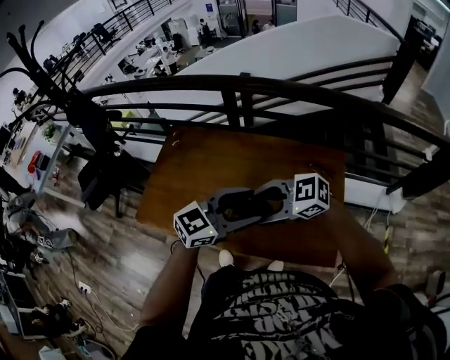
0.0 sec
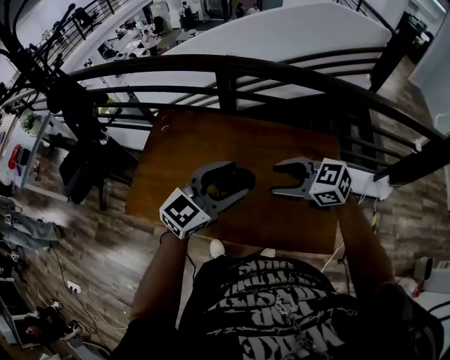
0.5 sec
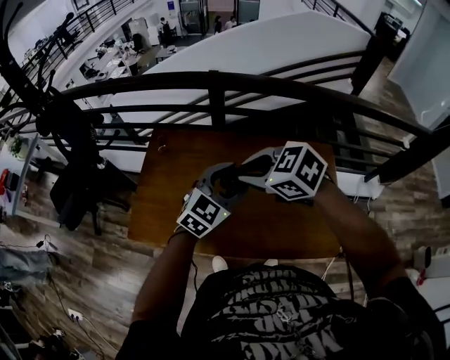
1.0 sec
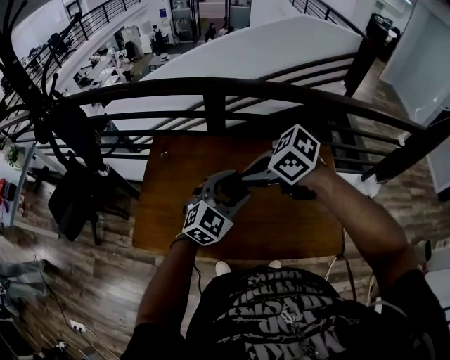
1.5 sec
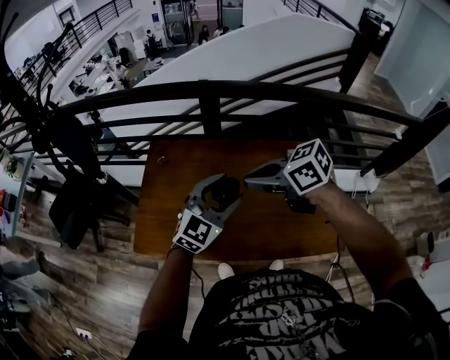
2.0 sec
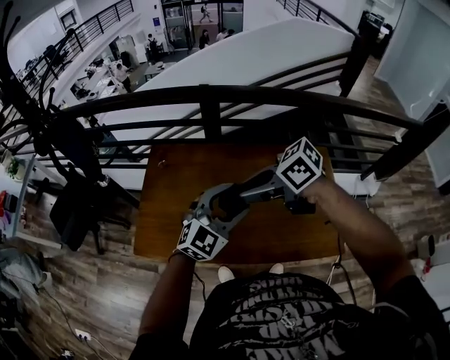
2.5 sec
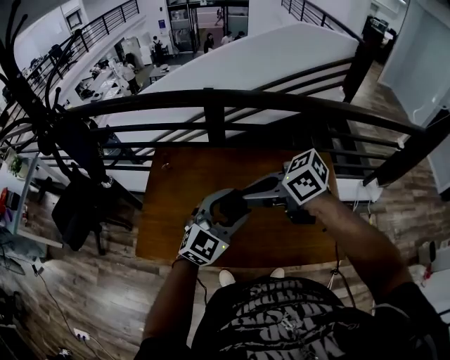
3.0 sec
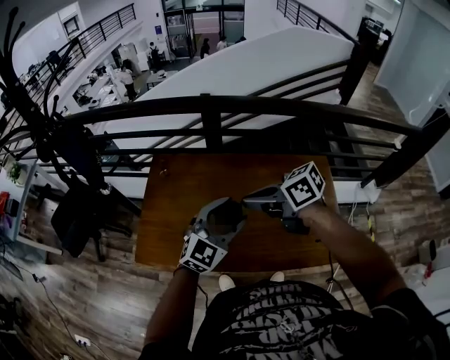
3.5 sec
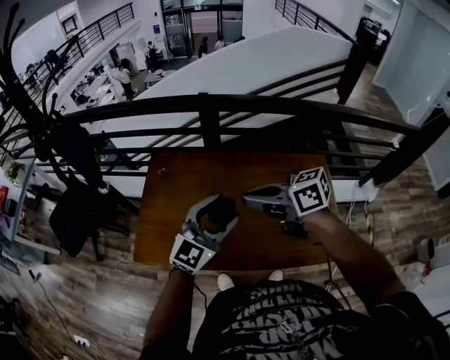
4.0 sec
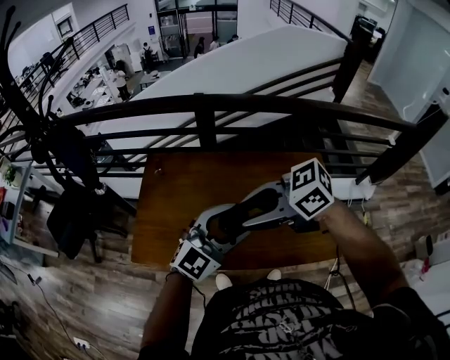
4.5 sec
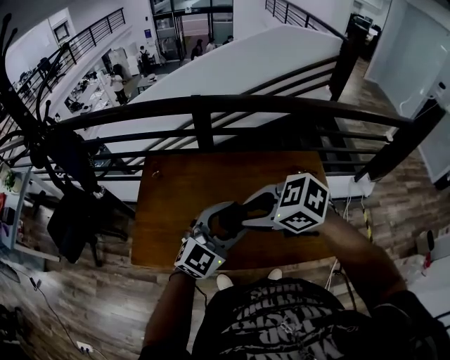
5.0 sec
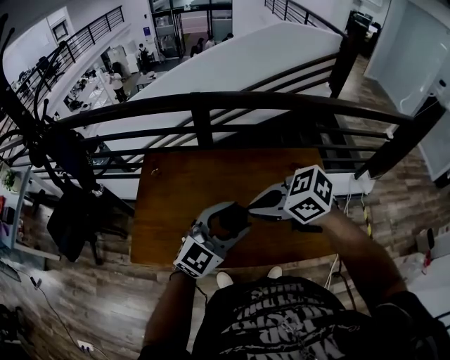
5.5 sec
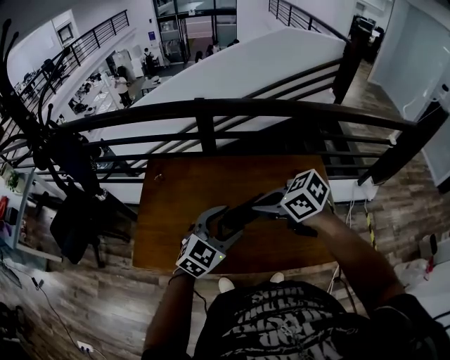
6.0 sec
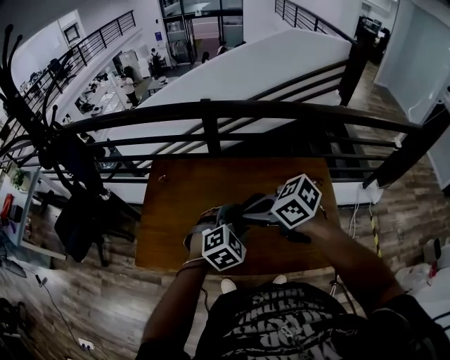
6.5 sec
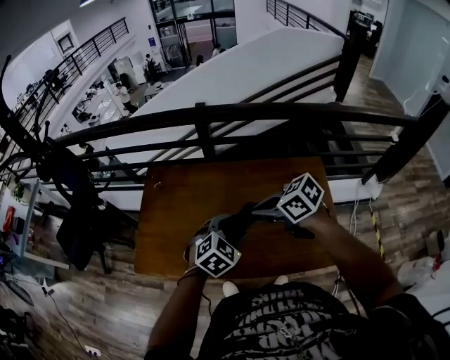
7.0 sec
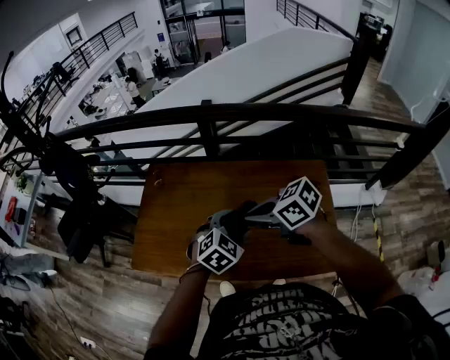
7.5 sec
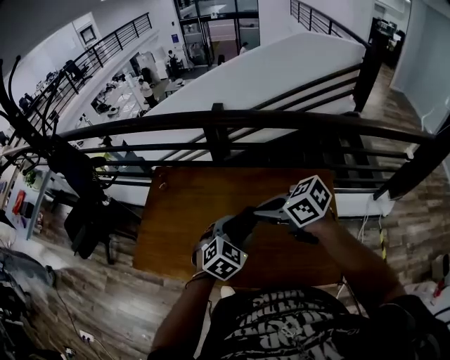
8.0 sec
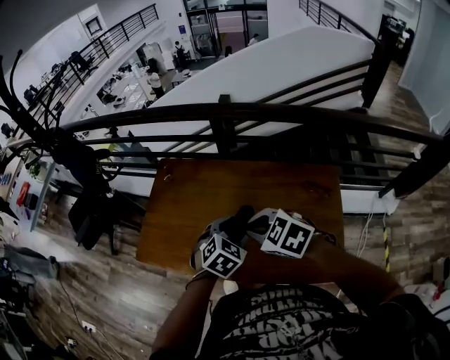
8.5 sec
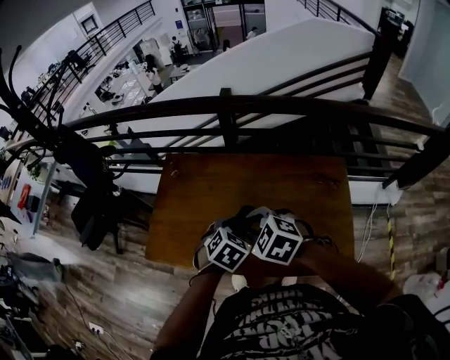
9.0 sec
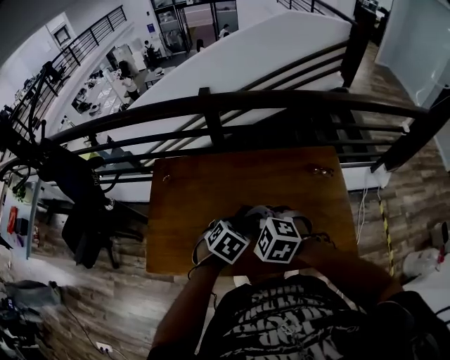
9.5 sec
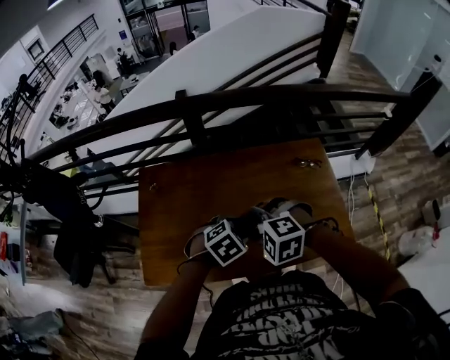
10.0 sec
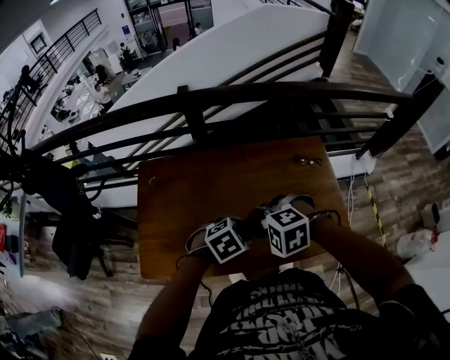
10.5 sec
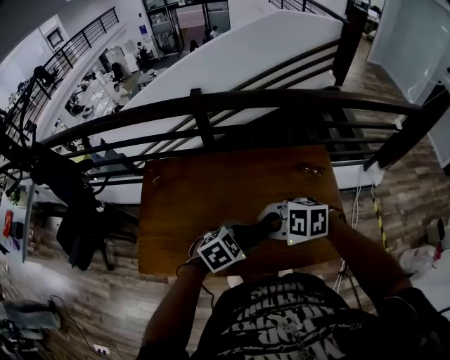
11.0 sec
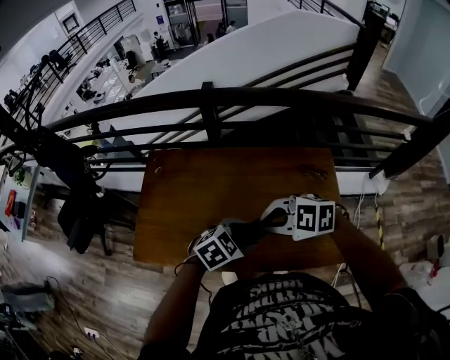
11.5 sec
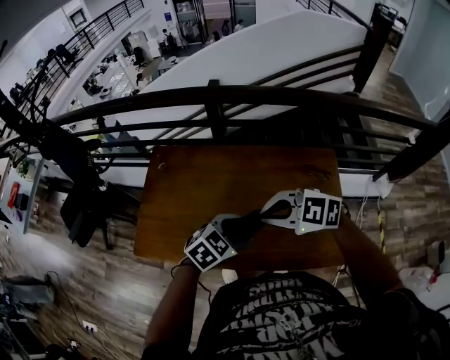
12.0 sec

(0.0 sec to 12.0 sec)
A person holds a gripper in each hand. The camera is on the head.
0.0 sec - 2.0 sec: The left gripper shifts by approximately 20 cm, and rotates some 20 degrees. Meanwhile the right gripper changes place by roughly 15 cm, rotates about 40 degrees, and closes its fingers.
2.0 sec - 4.0 sec: The right gripper opens, then closes again.
4.0 sec - 6.0 sec: The right gripper ends up some 5 cm from where it was, swivels some 20 degrees, and opens, then closes once more. Meanwhile the left gripper goes roughly 5 cm downward, and swivels some 20 degrees.
6.0 sec - 8.0 sec: The grippers both shift to the right by some 10 cm. The left gripper rotates roughly 20 degrees.
8.0 sec - 10.0 sec: The left gripper ends up approximately 10 cm from where it was, and swivels about 30 degrees. The right gripper changes place by about 15 cm, twists about 50 degrees counterclockwise, seen from behind, and opens.
10.0 sec - 12.0 sec: The left gripper shifts by about 10 cm, and changes its angle by about 20 degrees. The right gripper ends up roughly 10 cm from where it was, changes its angle by some 30 degrees, and closes up.

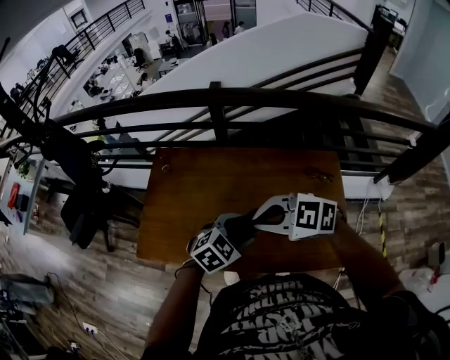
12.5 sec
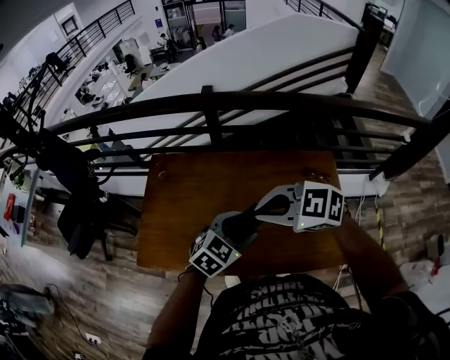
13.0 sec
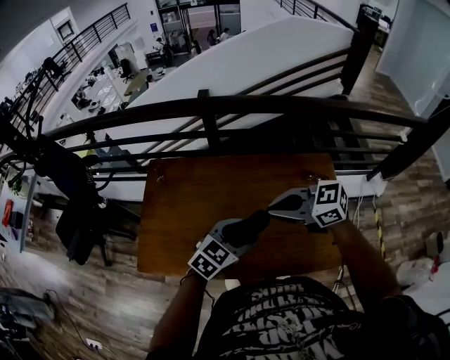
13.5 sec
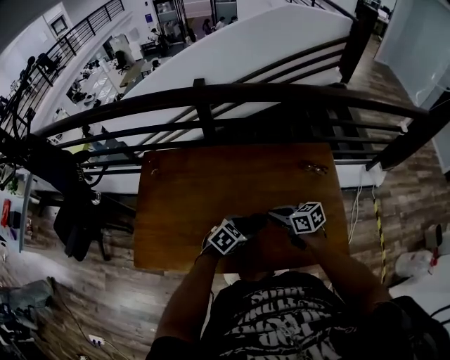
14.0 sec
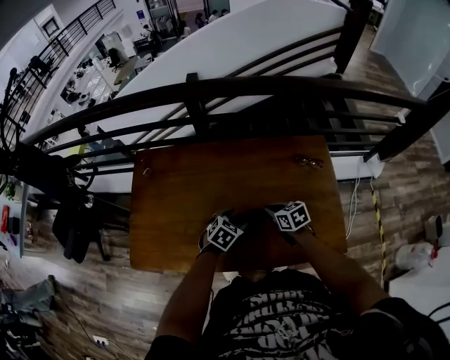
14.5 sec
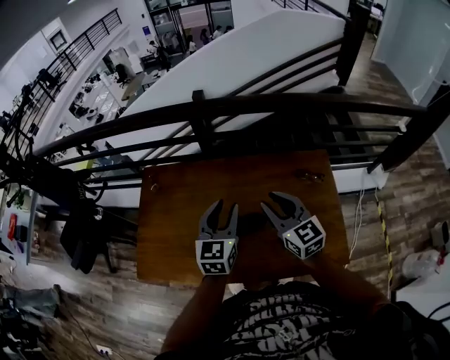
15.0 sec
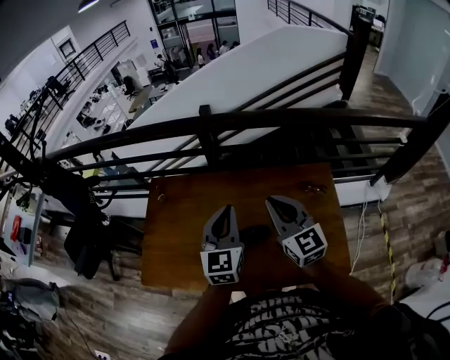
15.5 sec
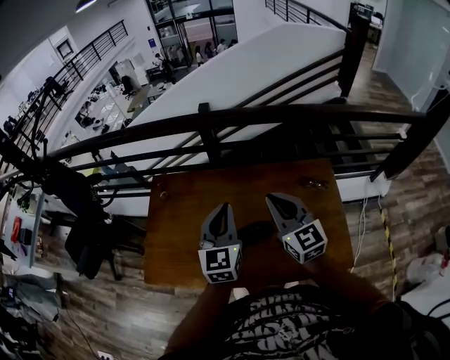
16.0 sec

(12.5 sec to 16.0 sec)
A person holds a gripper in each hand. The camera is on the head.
12.5 sec - 14.5 sec: The grippers both shift downward by approximately 25 cm. The right gripper rotates around the line of its fingers by approximately 60 degrees, clockwise from behind.
14.5 sec - 16.0 sec: The grippers both shift upward by some 30 cm. The right gripper tilts its fingers approximately 40 degrees upward, and opens, then closes again, while the left gripper tips its fingers upward by some 50 degrees, and closes.

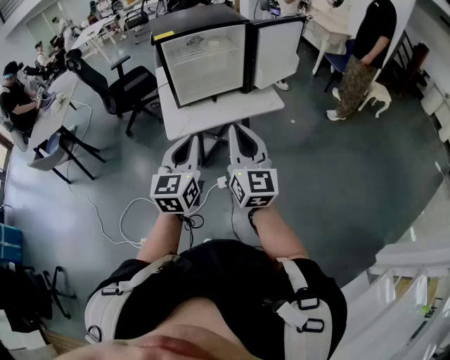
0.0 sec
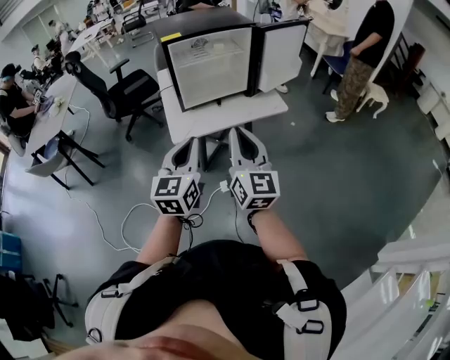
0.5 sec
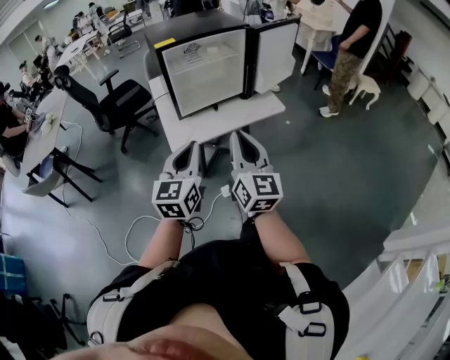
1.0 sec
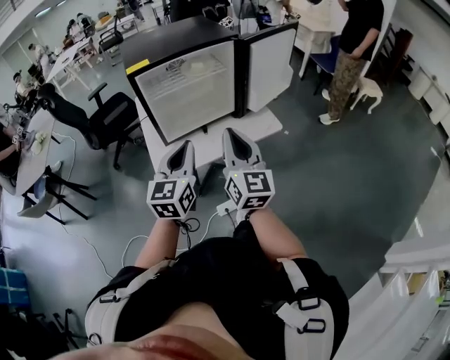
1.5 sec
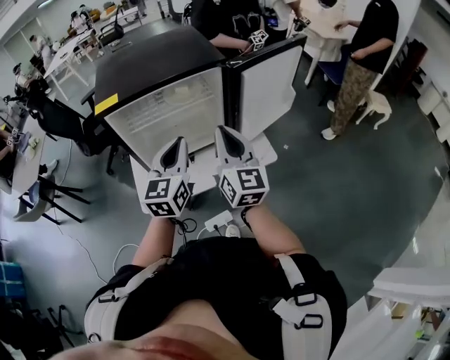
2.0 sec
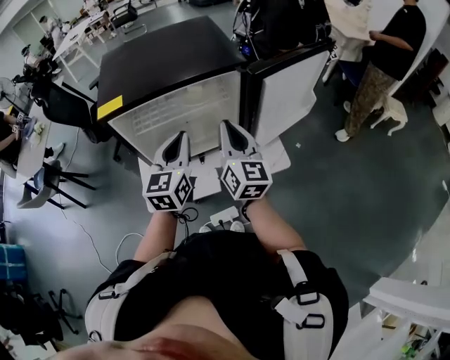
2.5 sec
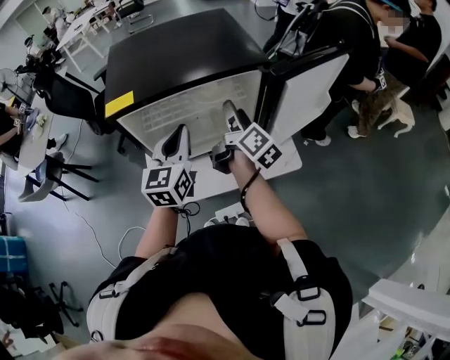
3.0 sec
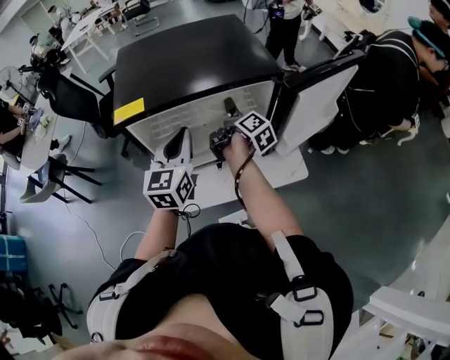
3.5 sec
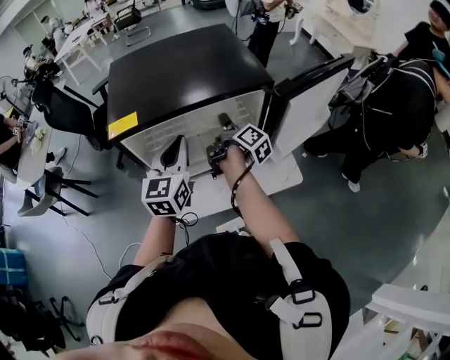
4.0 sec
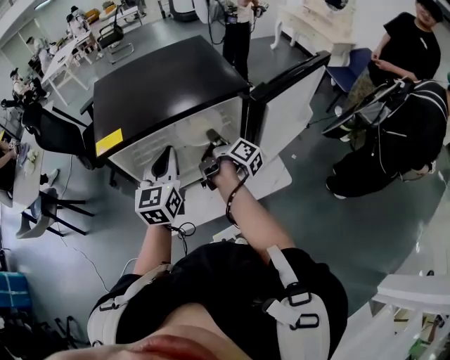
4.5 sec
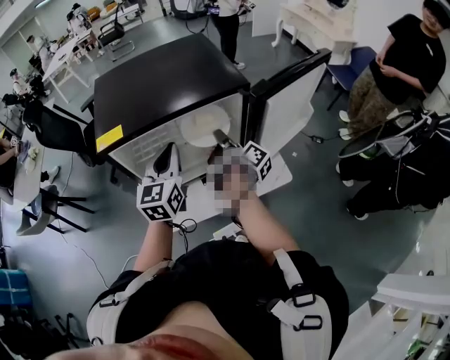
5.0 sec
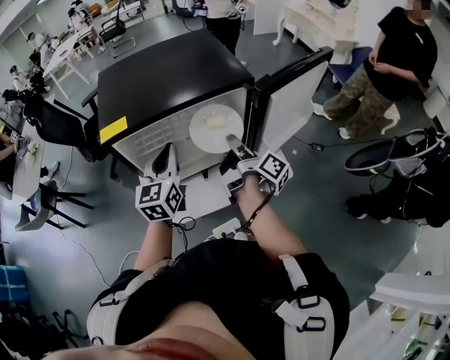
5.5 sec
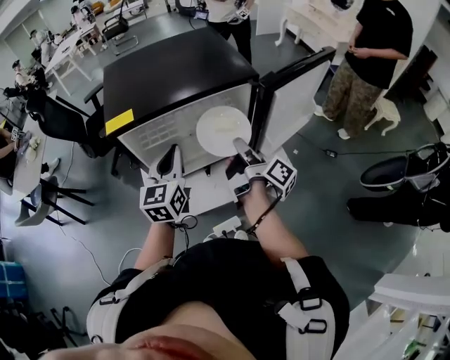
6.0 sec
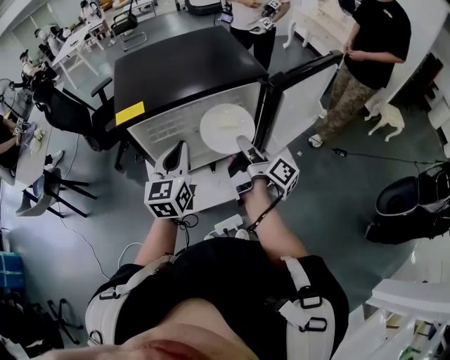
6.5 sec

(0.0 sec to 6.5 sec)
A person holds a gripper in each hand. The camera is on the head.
0.0 sec - 2.0 sec: The two grippers go some 35 cm forward.
2.0 sec - 4.5 sec: The left gripper travels forward and to the left by some 15 cm; the right gripper travels forward and downward by about 25 cm, rolls clockwise, seen from behind, by approximately 80 degrees, and opens, then closes once more.
4.5 sec - 6.5 sec: The right gripper travels backward and upward by approximately 15 cm; the left gripper shifts by approximately 5 cm.

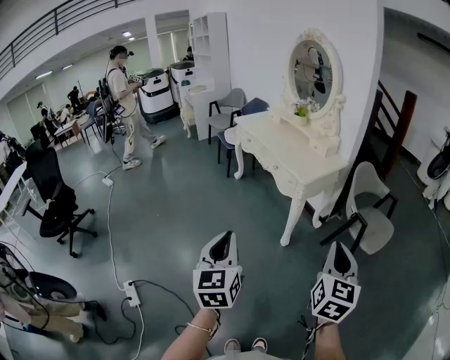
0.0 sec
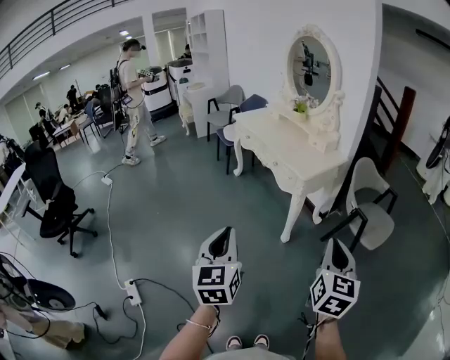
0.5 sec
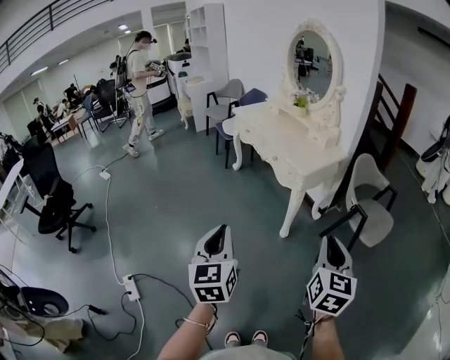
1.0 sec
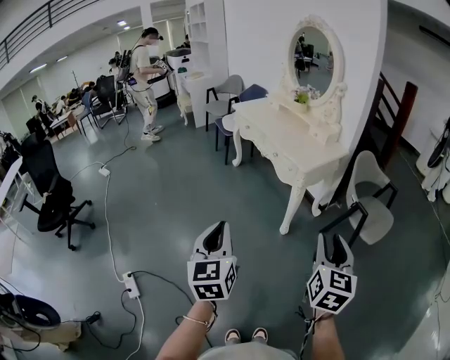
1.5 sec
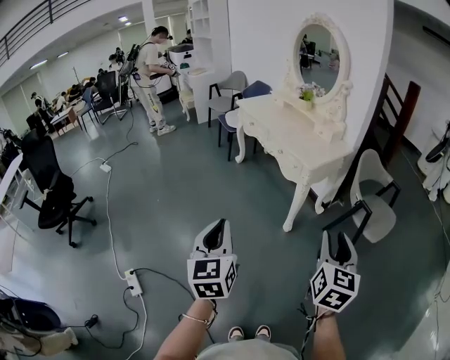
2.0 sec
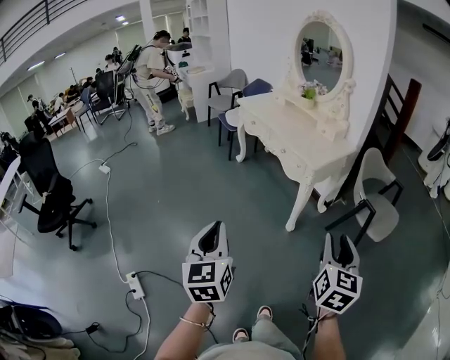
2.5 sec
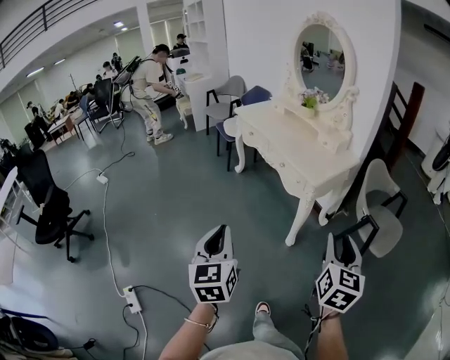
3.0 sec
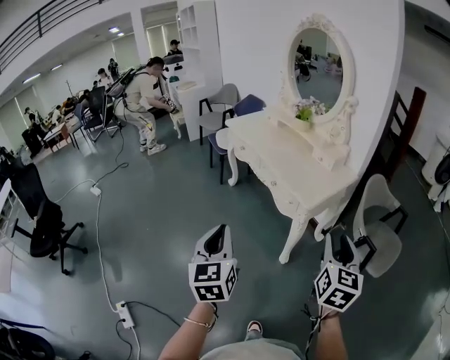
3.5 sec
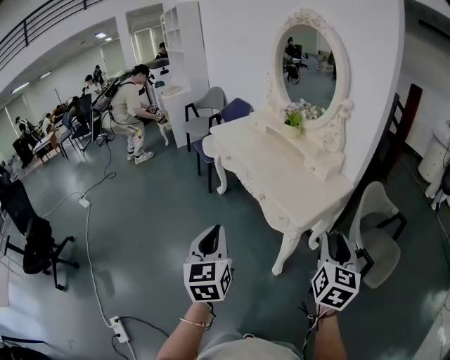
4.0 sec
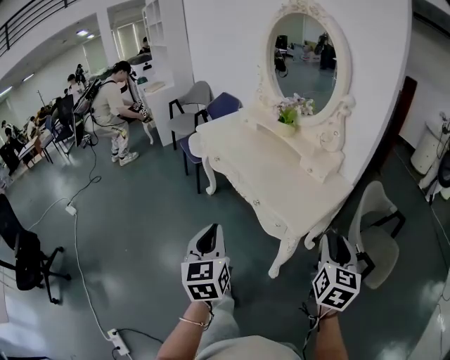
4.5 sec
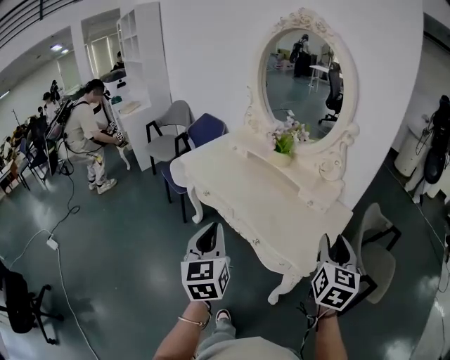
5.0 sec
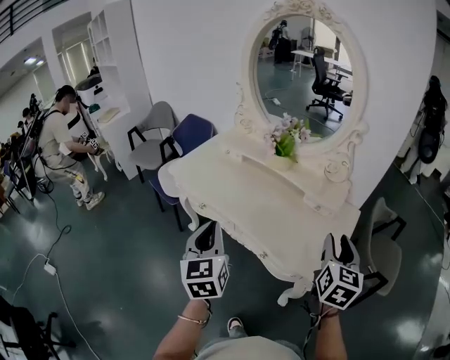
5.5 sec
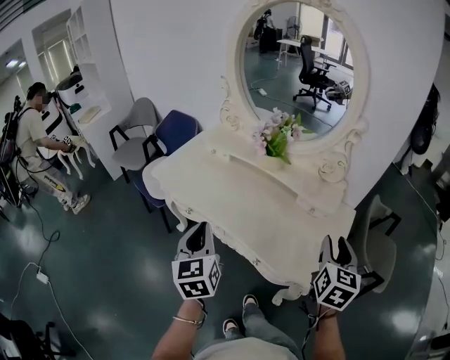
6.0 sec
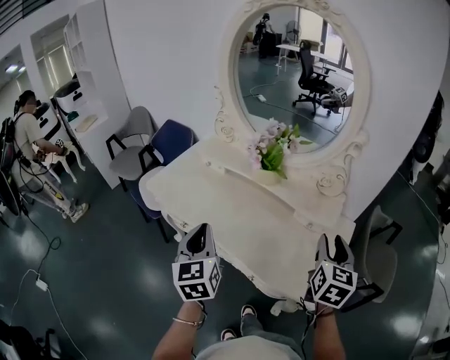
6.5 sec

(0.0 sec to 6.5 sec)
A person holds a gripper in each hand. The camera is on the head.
0.0 sec - 2.0 sec: The right gripper opens up; the left gripper is displaced to the left by about 5 cm.
2.0 sec - 4.5 sec: The two grippers travel together, forward, approximately 40 cm.
4.5 sec - 6.5 sec: The grippers both shift forward by approximately 35 cm.
